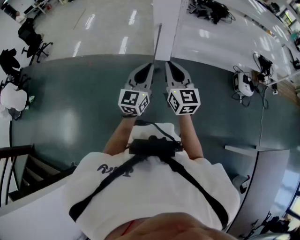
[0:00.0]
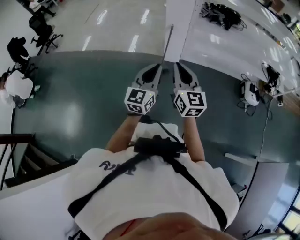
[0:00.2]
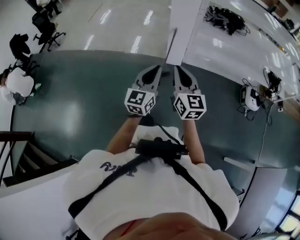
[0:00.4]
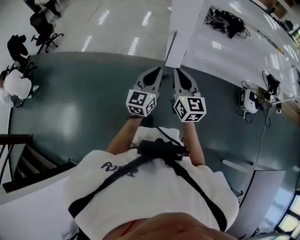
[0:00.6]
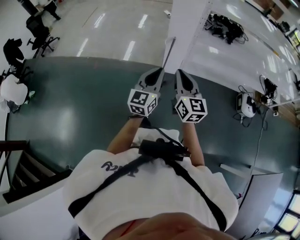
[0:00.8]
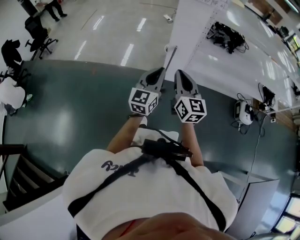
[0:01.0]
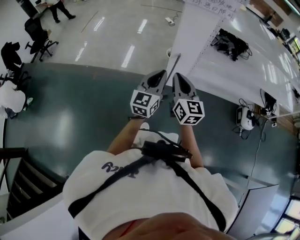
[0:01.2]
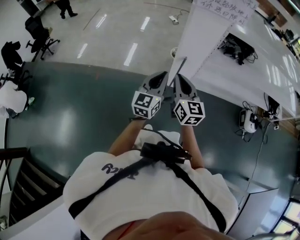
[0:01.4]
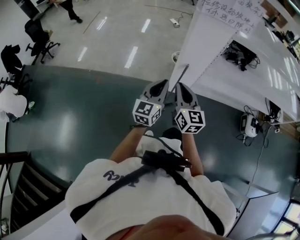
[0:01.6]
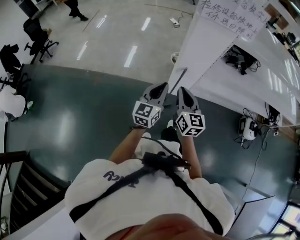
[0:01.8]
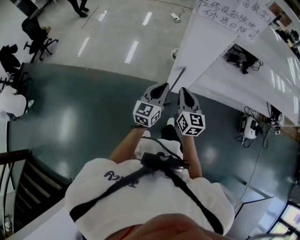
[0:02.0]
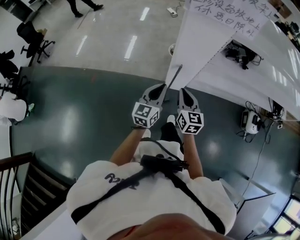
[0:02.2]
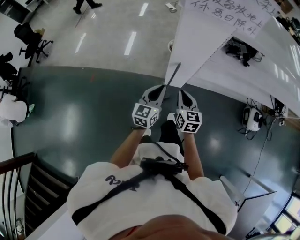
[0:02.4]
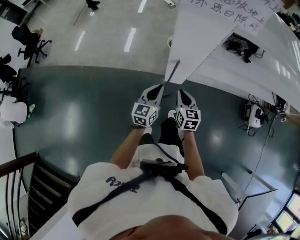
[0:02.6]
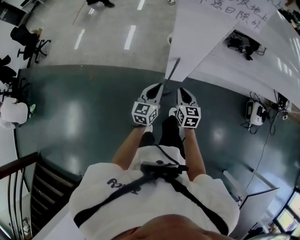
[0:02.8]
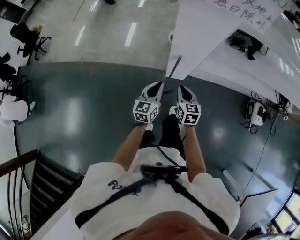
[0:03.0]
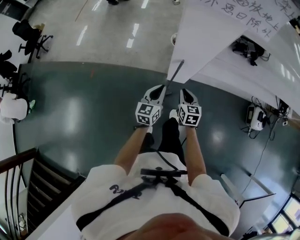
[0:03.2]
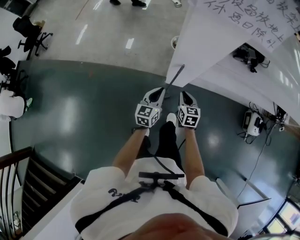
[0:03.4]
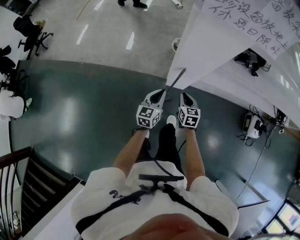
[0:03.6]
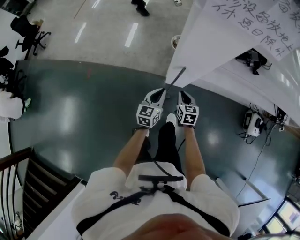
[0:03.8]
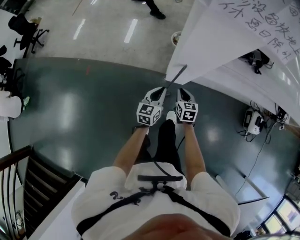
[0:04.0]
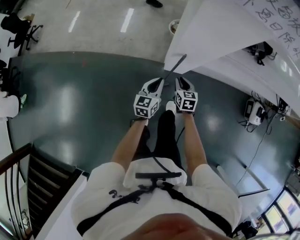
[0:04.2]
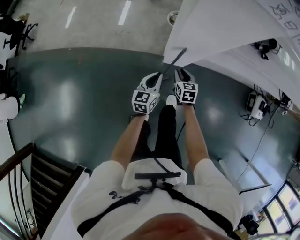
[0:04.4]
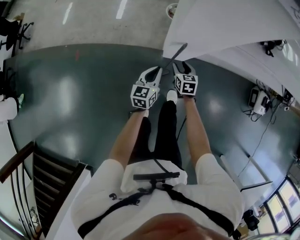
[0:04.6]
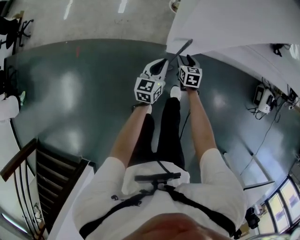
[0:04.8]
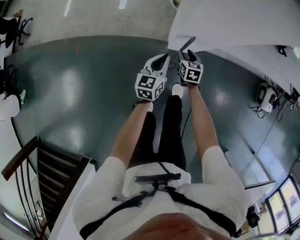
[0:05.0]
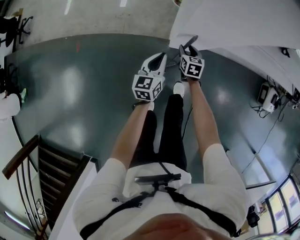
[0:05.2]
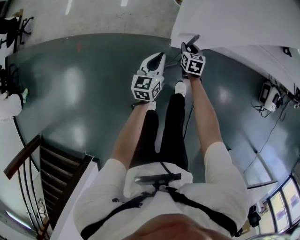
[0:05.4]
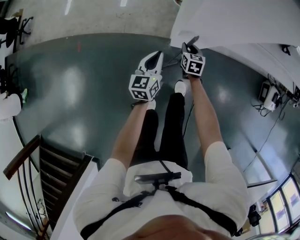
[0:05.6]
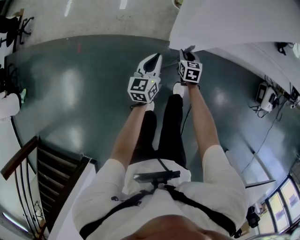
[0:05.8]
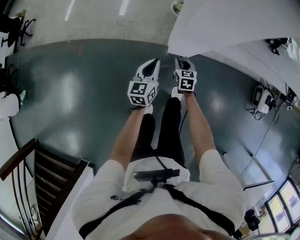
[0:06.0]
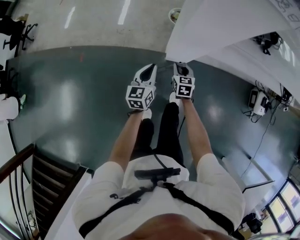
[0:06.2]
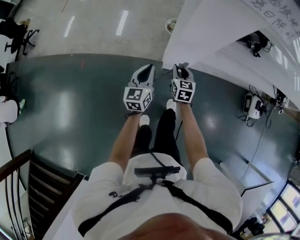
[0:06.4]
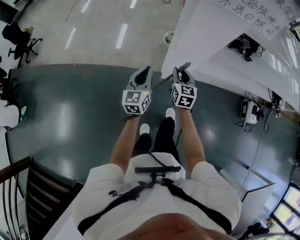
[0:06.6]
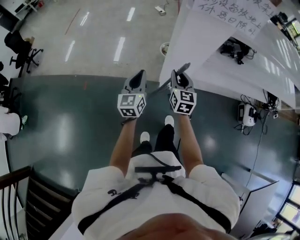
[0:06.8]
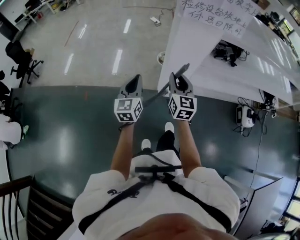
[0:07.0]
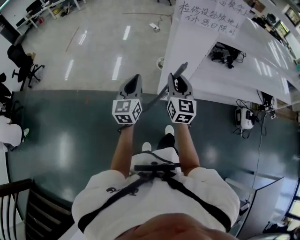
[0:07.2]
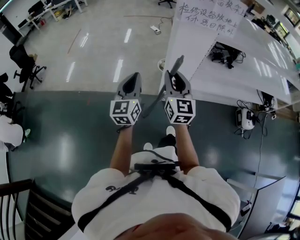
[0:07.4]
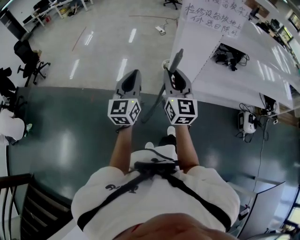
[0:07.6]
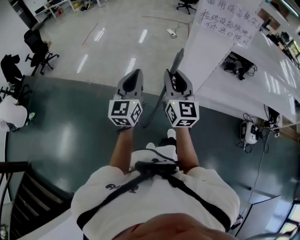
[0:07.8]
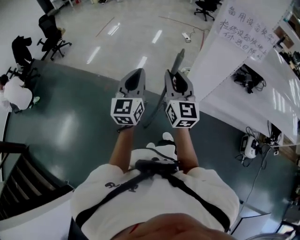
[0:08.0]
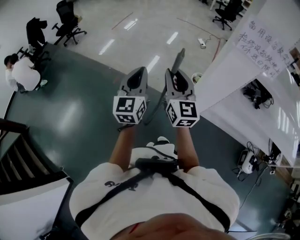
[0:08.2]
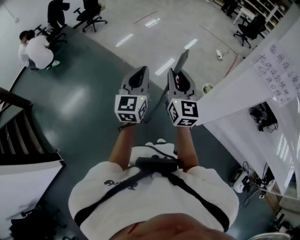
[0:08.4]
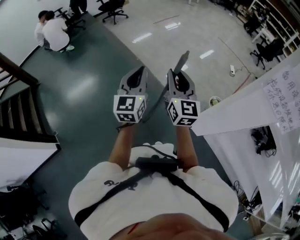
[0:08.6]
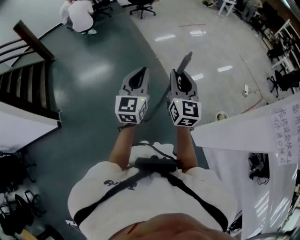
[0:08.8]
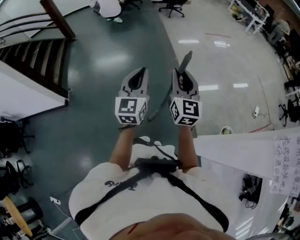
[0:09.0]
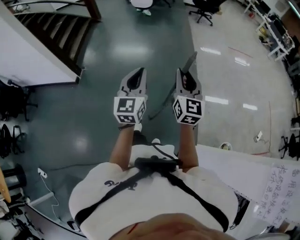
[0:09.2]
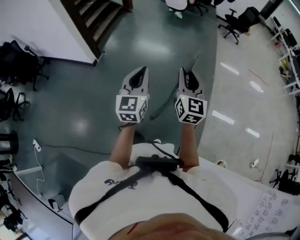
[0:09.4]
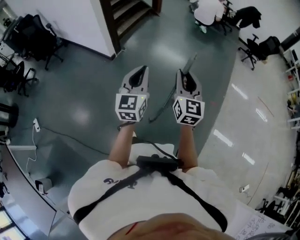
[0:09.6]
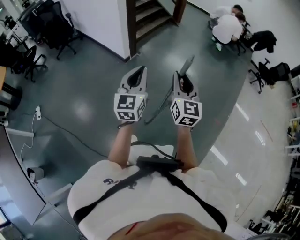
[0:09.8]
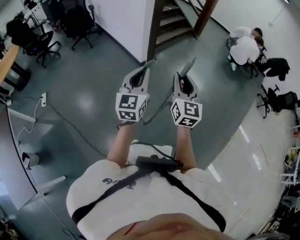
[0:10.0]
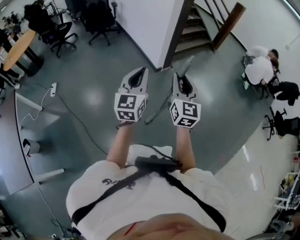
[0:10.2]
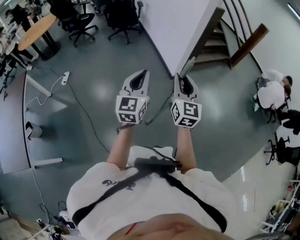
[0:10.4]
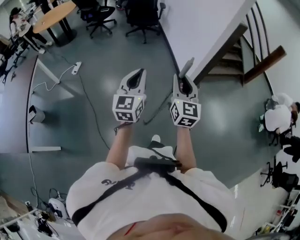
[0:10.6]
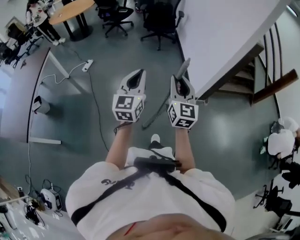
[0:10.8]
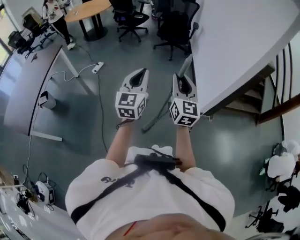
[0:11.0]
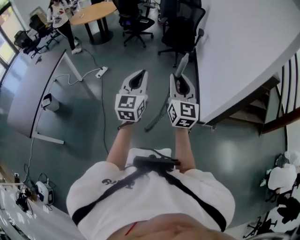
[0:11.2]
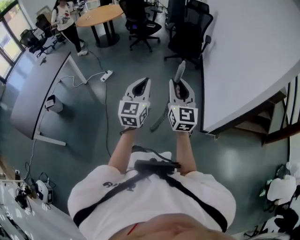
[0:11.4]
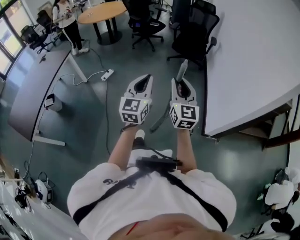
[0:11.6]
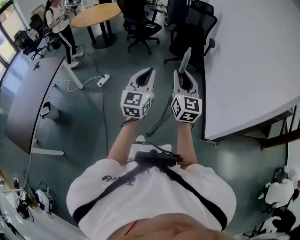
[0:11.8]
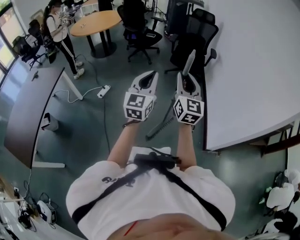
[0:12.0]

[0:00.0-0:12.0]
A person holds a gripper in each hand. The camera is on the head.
0.0 to 1.6 s: The grippers both shift forward by roughly 35 cm.
1.6 to 3.0 s: The left gripper goes some 25 cm downward and forward; the right gripper is displaced downward, forward and to the right by roughly 30 cm, and changes its angle by roughly 30 degrees.
3.0 to 4.4 s: The two grippers go about 20 cm downward and forward.
4.4 to 6.0 s: The right gripper travels downward by roughly 5 cm.
6.0 to 7.6 s: The two grippers go about 50 cm upward. The right gripper tilts its fingers about 50 degrees upward. Meanwhile the left gripper changes its angle by approximately 30 degrees.
7.6 to 9.0 s: The right gripper ends up about 35 cm from where it was, and turns by about 70 degrees. The left gripper ends up approximately 30 cm from where it was, and swivels roughly 70 degrees.
9.0 to 10.4 s: The pair of grippers is taken some 80 cm. The right gripper turns by some 80 degrees, while the left gripper swivels roughly 80 degrees.
10.4 to 12.0 s: Both grippers are carried approximately 60 cm. The right gripper turns by about 30 degrees; the left gripper changes its angle by about 30 degrees.

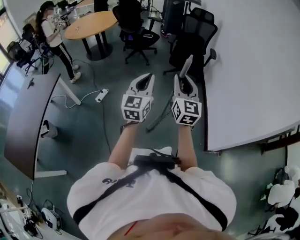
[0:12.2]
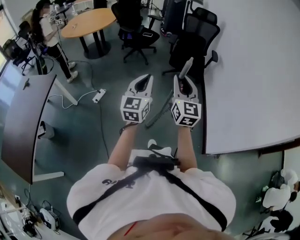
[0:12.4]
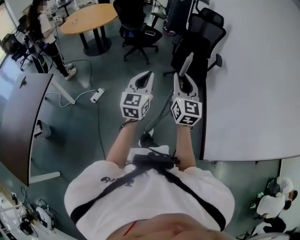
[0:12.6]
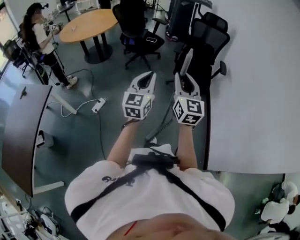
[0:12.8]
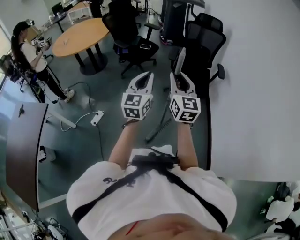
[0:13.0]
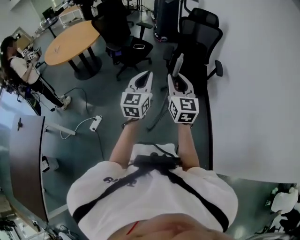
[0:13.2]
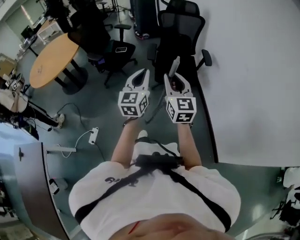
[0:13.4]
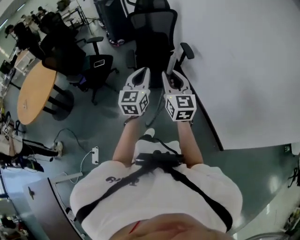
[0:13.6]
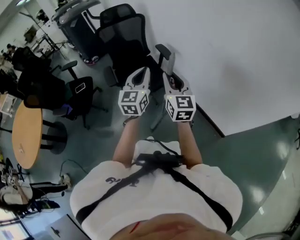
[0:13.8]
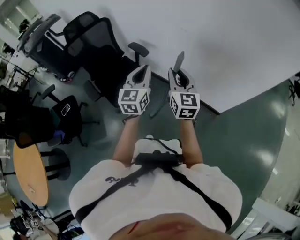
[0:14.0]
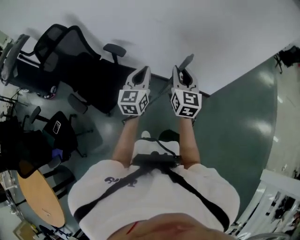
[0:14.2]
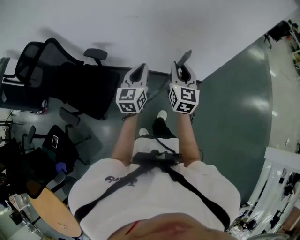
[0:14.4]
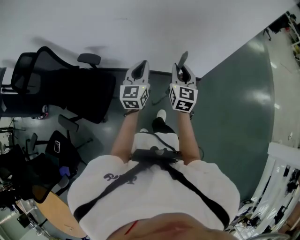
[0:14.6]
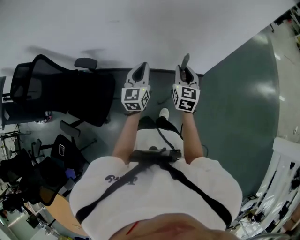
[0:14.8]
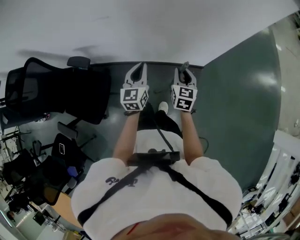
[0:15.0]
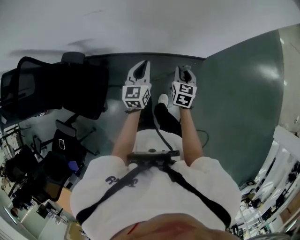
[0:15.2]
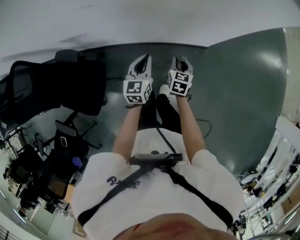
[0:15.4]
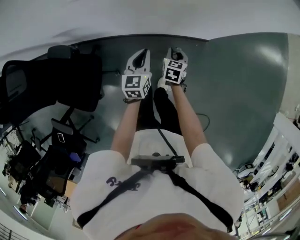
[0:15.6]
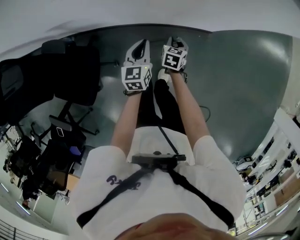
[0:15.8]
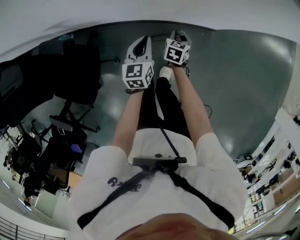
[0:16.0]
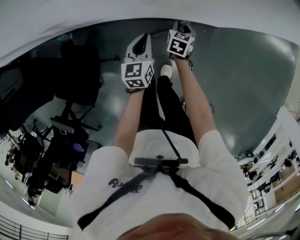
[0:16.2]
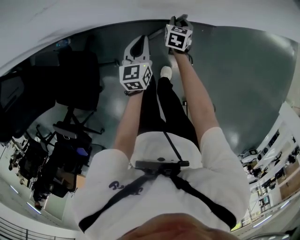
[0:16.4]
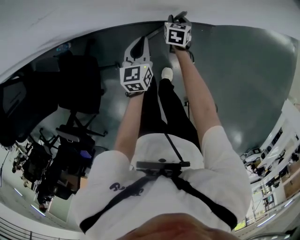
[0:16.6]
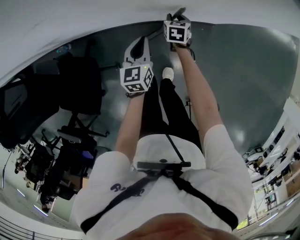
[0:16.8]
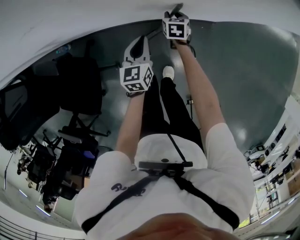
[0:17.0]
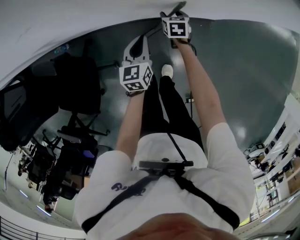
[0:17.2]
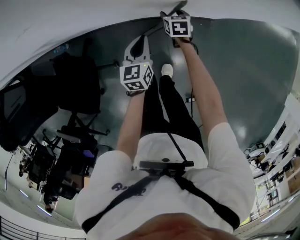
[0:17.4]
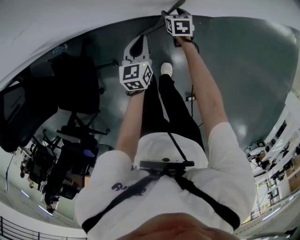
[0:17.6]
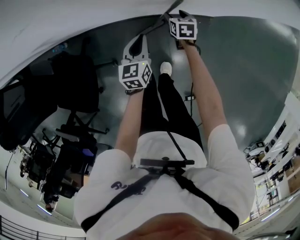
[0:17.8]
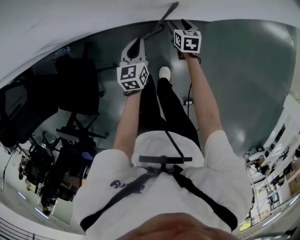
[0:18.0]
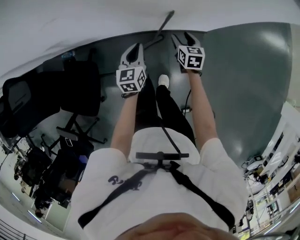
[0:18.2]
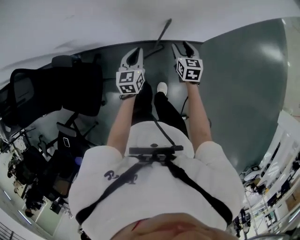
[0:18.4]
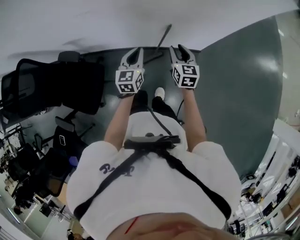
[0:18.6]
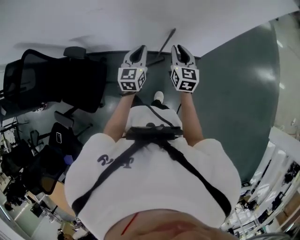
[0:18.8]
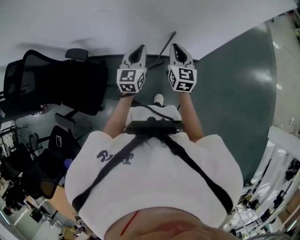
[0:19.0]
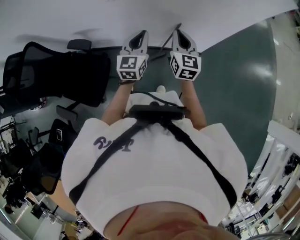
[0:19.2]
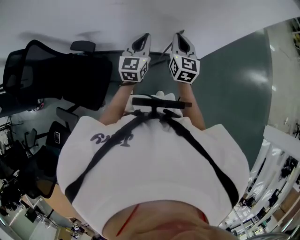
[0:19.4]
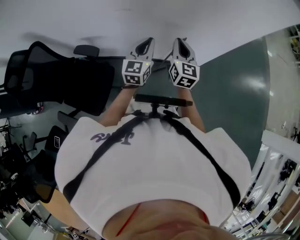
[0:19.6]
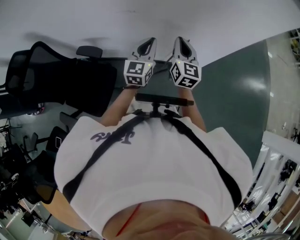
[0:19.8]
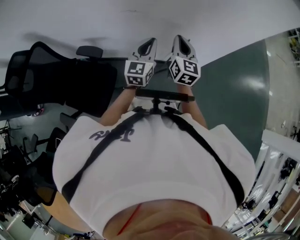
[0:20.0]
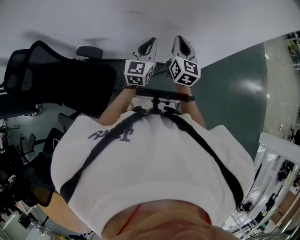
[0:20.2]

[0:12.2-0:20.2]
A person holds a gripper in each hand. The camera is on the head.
12.2 to 13.8 s: The pair of grippers is taken roughly 70 cm. The left gripper changes its angle by approximately 40 degrees. The right gripper changes its angle by some 40 degrees.
13.8 to 15.4 s: The pair of grippers is taken approximately 40 cm. The left gripper rotates some 50 degrees. Meanwhile the right gripper tips its fingers downward by approximately 40 degrees.
15.4 to 17.0 s: The right gripper is displaced forward and downward by about 25 cm, while the left gripper travels downward and forward by roughly 15 cm.
17.0 to 18.6 s: The right gripper is displaced upward and backward by some 35 cm, rotates about 20 degrees, and opens, then closes once more. The left gripper is displaced upward and backward by some 20 cm.
18.6 to 20.2 s: Both grippers travel together to the left and upward, roughly 25 cm. The right gripper closes up.

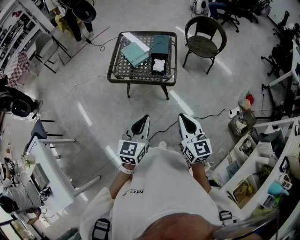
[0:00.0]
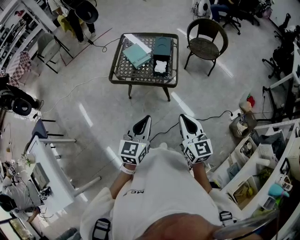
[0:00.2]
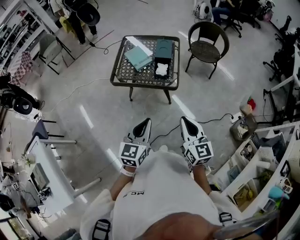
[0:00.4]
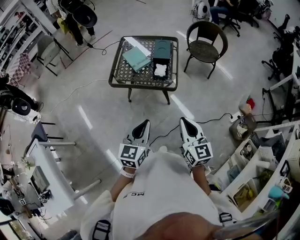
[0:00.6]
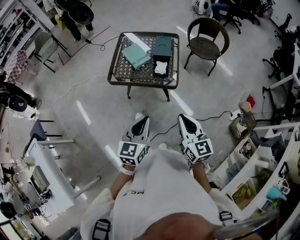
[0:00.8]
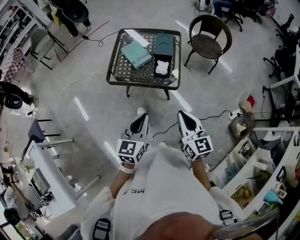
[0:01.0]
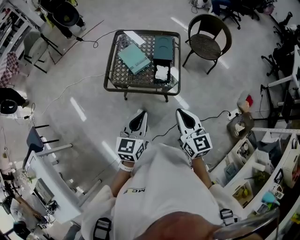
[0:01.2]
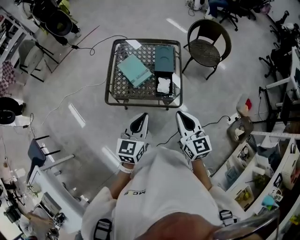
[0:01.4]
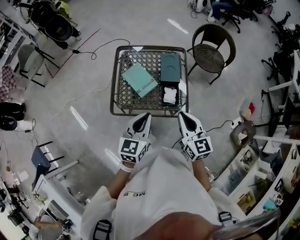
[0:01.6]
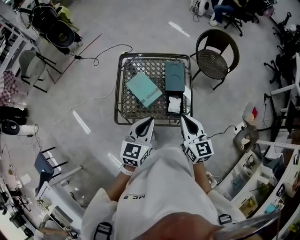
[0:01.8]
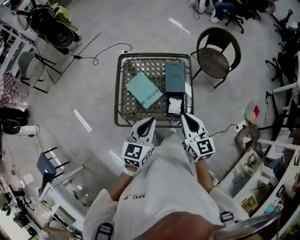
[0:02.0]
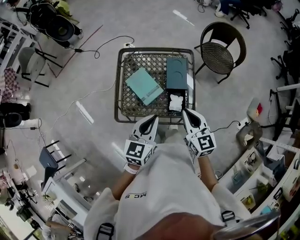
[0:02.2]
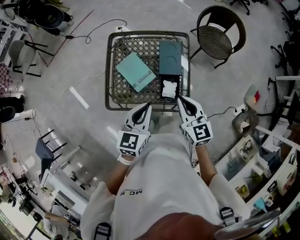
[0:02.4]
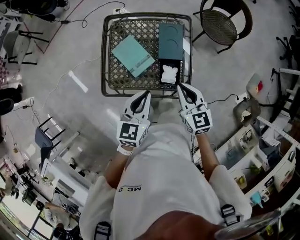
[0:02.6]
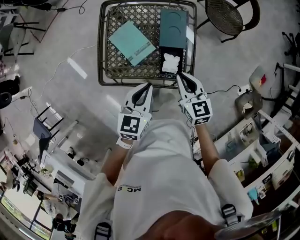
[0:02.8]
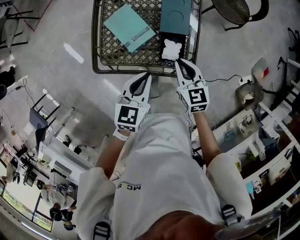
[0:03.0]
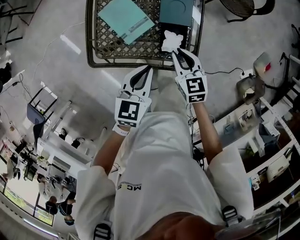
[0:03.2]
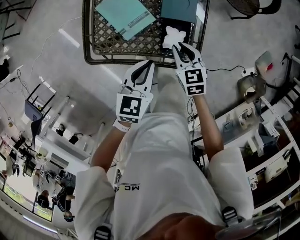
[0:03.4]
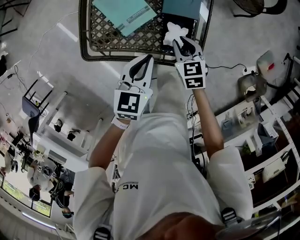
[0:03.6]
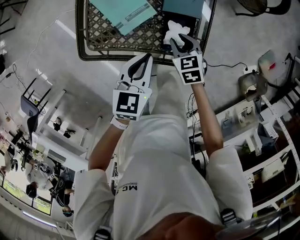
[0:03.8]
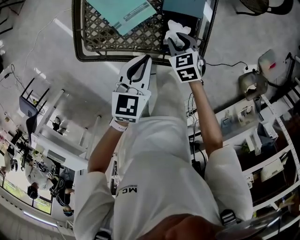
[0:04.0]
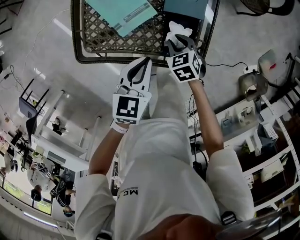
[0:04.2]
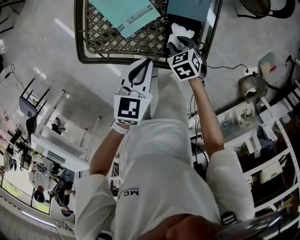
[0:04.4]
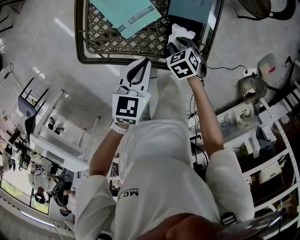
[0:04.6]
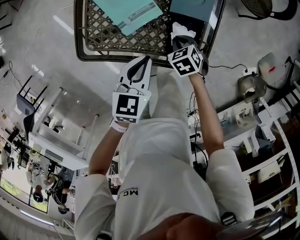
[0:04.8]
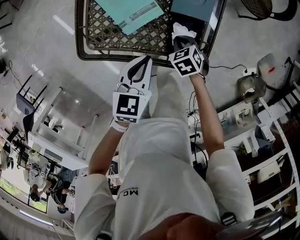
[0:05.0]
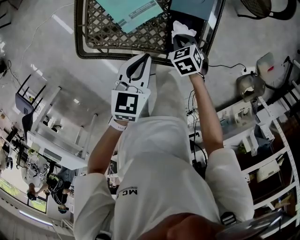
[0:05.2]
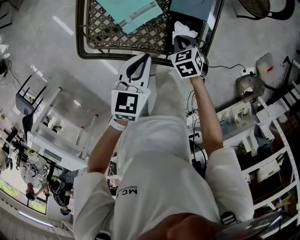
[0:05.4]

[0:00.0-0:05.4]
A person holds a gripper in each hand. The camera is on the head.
0.0 to 1.4 s: The grippers both shift forward by approximately 25 cm.
1.4 to 2.8 s: The grippers both shift forward and downward by about 25 cm.
2.8 to 4.0 s: The right gripper goes about 25 cm downward, changes its angle by roughly 30 degrees, and opens; the left gripper shifts roughly 15 cm downward.
4.0 to 5.4 s: The right gripper closes up.
